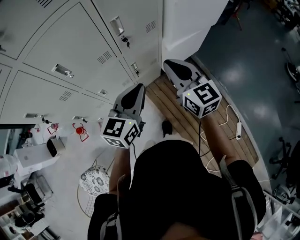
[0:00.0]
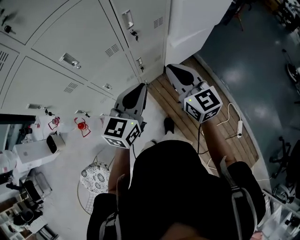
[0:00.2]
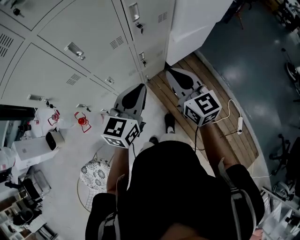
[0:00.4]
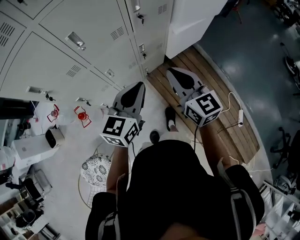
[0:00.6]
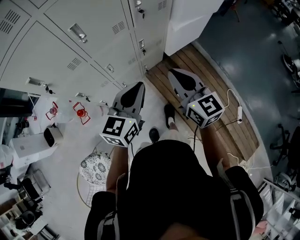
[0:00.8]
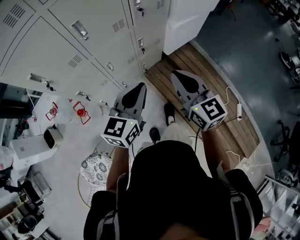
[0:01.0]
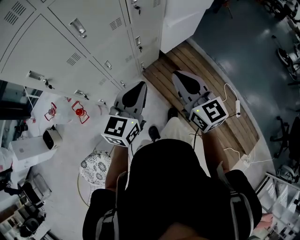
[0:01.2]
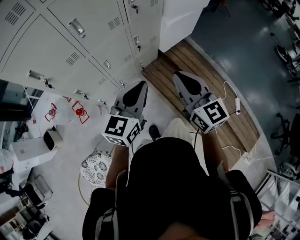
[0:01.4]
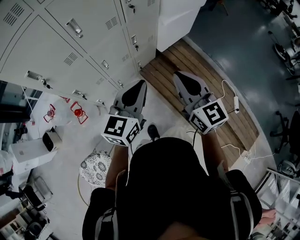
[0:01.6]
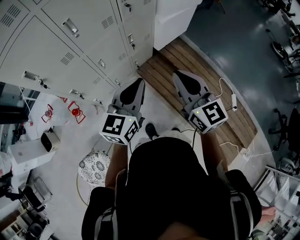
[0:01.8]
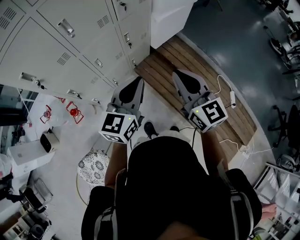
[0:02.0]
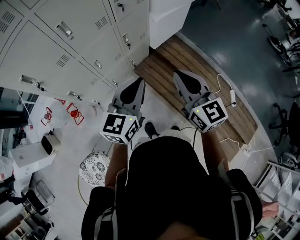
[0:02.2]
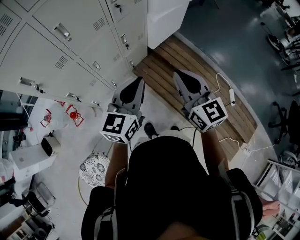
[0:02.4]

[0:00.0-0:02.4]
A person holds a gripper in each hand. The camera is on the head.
0:00.0 to 0:01.2: The left gripper heads backward and to the left, covering approximately 20 cm; the right gripper heads backward, covering some 25 cm.
0:01.2 to 0:02.4: Both grippers travel together to the right, some 5 cm.

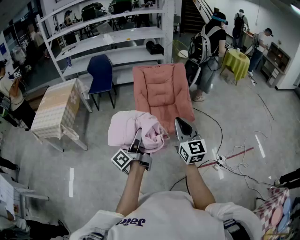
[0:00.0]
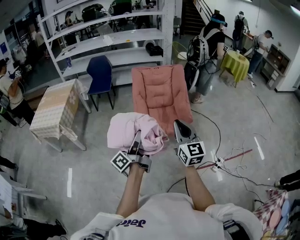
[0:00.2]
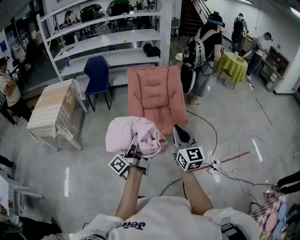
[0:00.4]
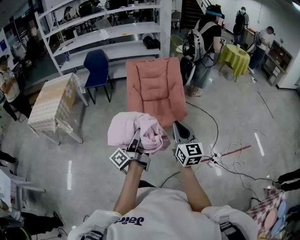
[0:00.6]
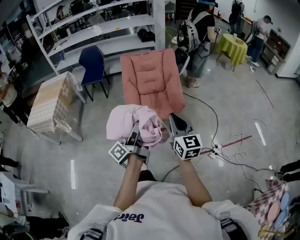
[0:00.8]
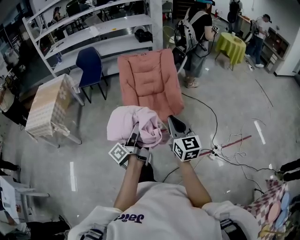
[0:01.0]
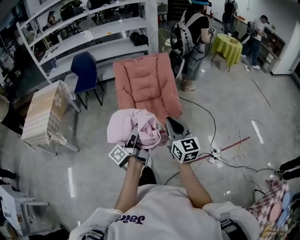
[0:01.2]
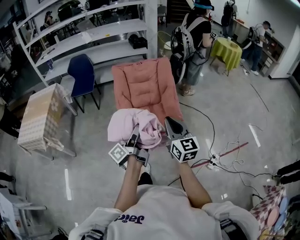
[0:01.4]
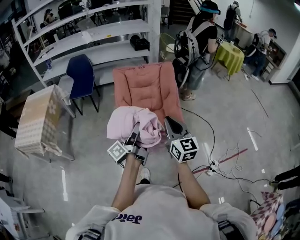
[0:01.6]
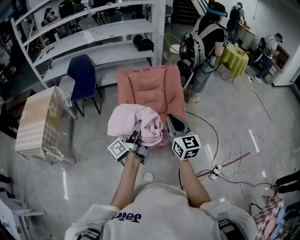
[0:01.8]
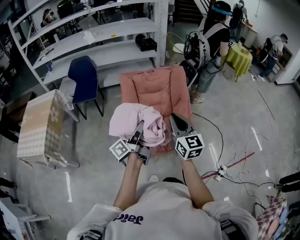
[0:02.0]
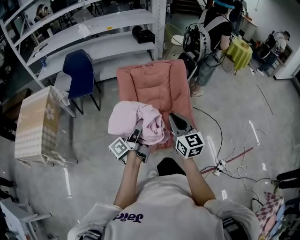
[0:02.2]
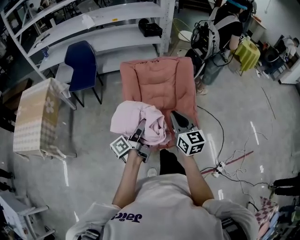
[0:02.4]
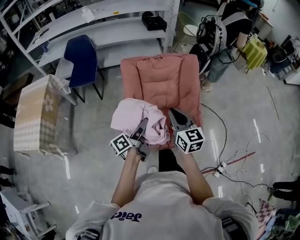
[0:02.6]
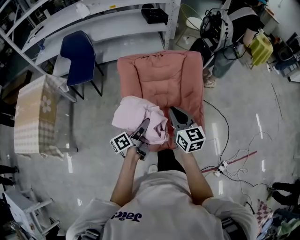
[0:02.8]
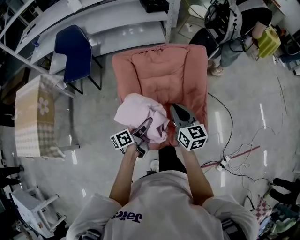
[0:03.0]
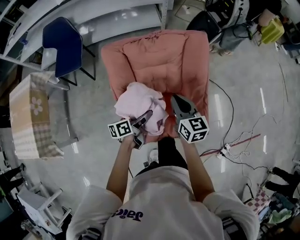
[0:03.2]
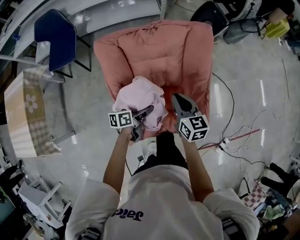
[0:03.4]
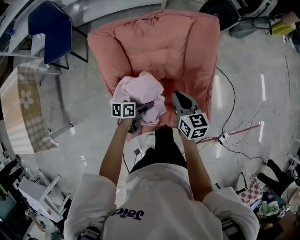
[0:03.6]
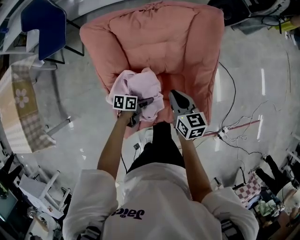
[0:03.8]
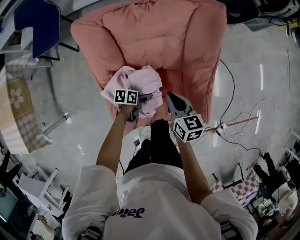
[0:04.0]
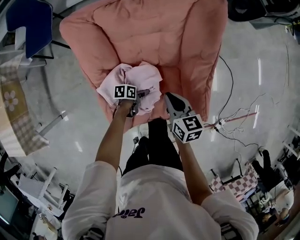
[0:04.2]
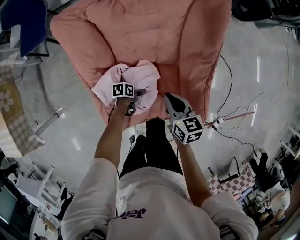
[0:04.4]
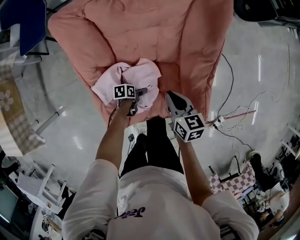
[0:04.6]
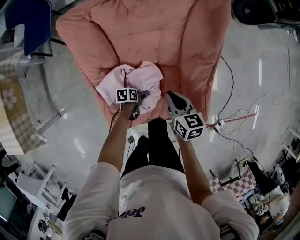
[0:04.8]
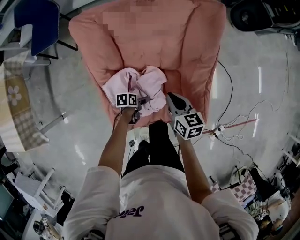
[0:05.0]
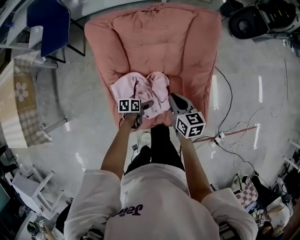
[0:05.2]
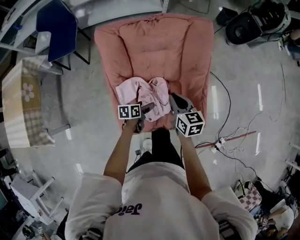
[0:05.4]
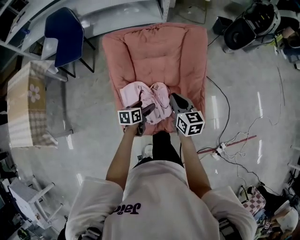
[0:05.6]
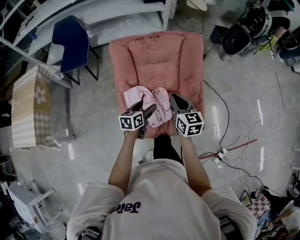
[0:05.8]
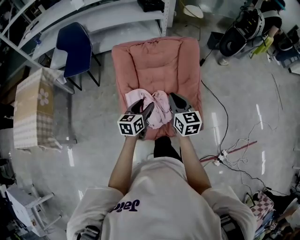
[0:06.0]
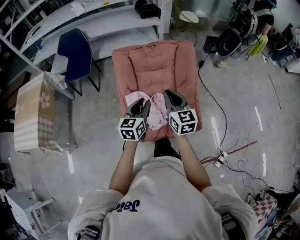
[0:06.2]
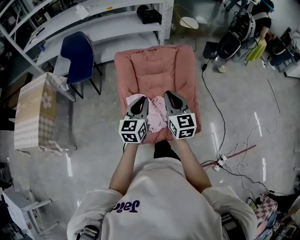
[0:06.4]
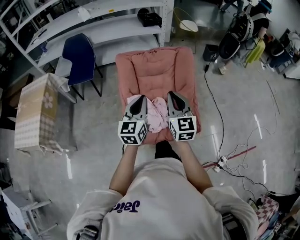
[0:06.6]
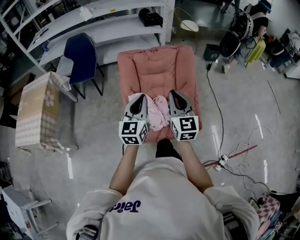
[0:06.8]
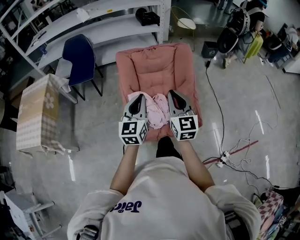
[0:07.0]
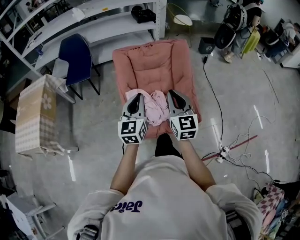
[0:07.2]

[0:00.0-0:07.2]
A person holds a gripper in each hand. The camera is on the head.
0:00.0 to 0:01.4: The left gripper moves forward and to the right, approximately 20 cm. Meanwhile the right gripper goes roughly 15 cm forward, to the right and downward.
0:01.4 to 0:02.8: The two grippers go about 40 cm forward. The left gripper swivels some 20 degrees.
0:02.8 to 0:04.4: The right gripper is displaced downward and forward by some 30 cm, and changes its angle by roughly 30 degrees, while the left gripper goes about 50 cm downward, and tilts its fingers roughly 50 degrees downward.
0:04.4 to 0:05.8: The left gripper goes some 35 cm upward, and turns by approximately 50 degrees. The right gripper heads upward, covering some 20 cm, and rotates about 20 degrees.
0:05.8 to 0:07.2: The right gripper shifts approximately 20 cm backward and upward, and swivels some 30 degrees. Meanwhile the left gripper travels upward and backward by roughly 25 cm, rotates about 40 degrees, and closes up.

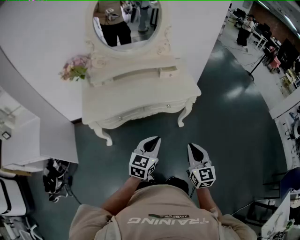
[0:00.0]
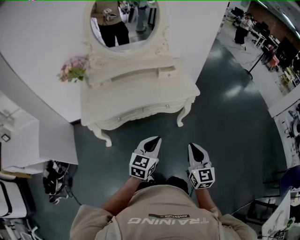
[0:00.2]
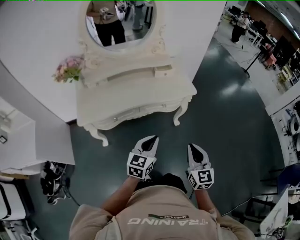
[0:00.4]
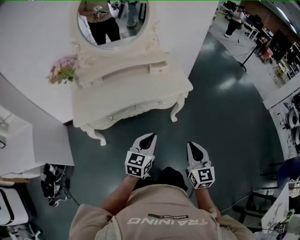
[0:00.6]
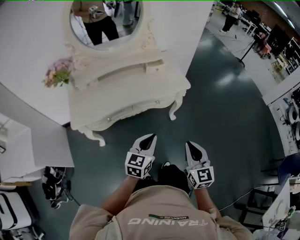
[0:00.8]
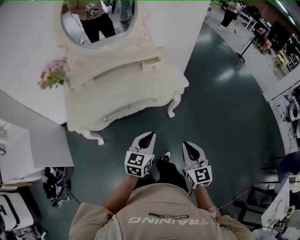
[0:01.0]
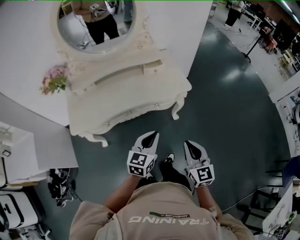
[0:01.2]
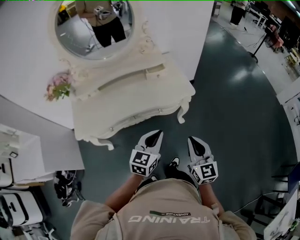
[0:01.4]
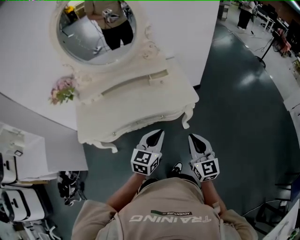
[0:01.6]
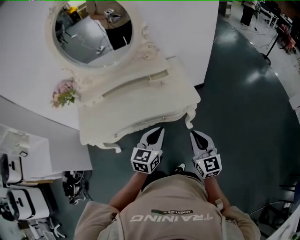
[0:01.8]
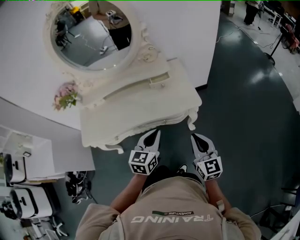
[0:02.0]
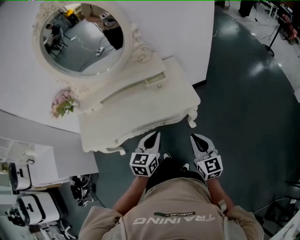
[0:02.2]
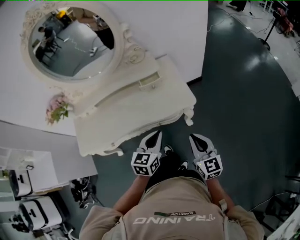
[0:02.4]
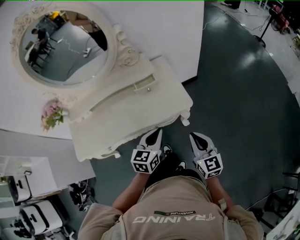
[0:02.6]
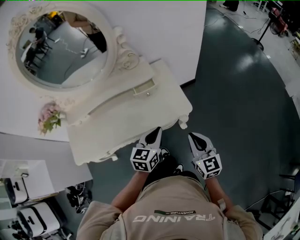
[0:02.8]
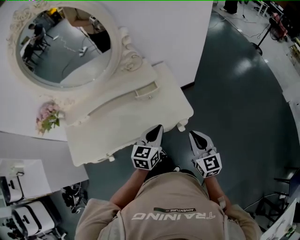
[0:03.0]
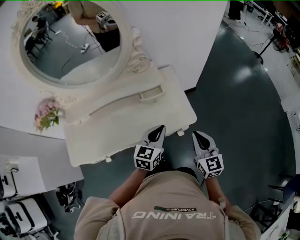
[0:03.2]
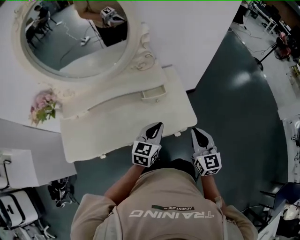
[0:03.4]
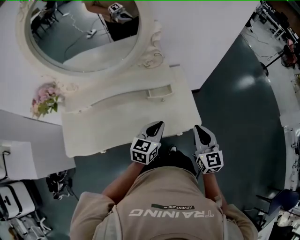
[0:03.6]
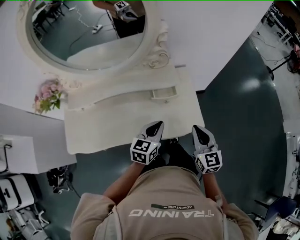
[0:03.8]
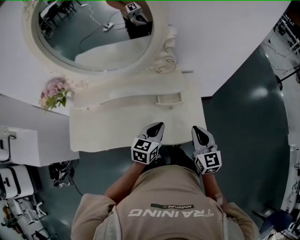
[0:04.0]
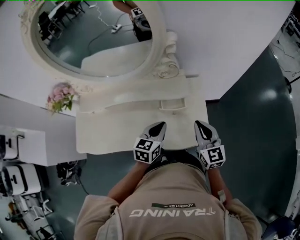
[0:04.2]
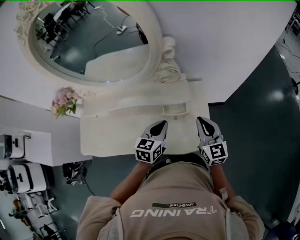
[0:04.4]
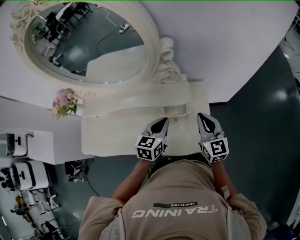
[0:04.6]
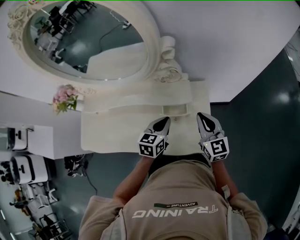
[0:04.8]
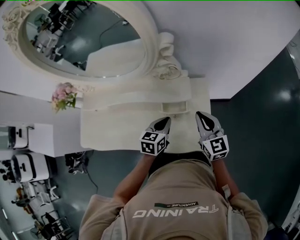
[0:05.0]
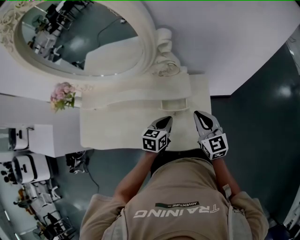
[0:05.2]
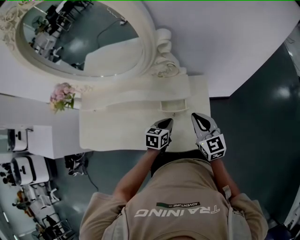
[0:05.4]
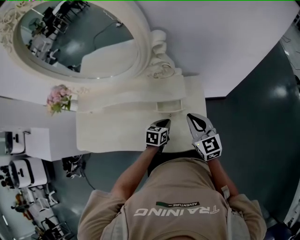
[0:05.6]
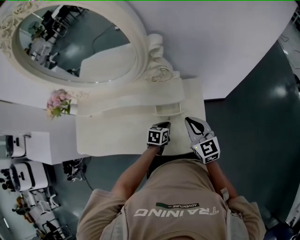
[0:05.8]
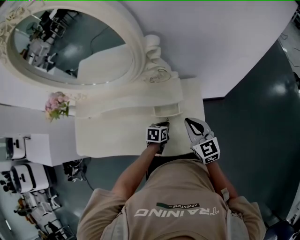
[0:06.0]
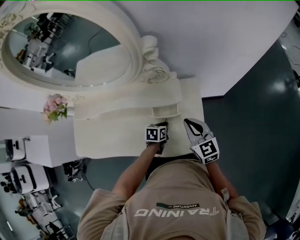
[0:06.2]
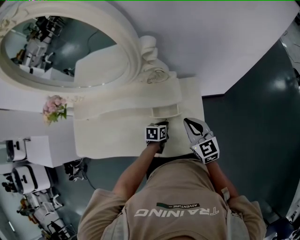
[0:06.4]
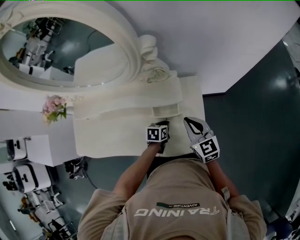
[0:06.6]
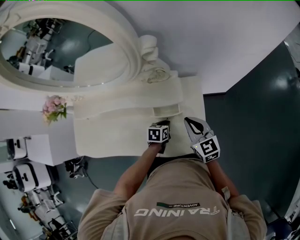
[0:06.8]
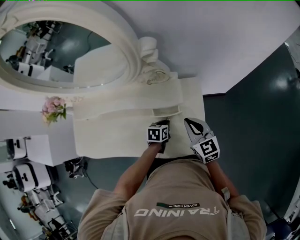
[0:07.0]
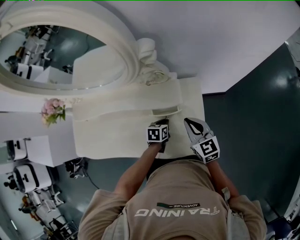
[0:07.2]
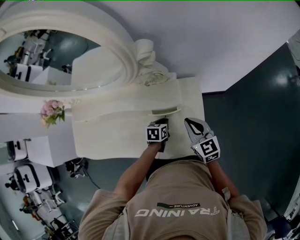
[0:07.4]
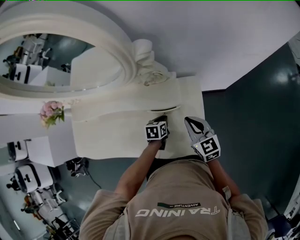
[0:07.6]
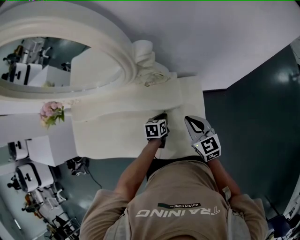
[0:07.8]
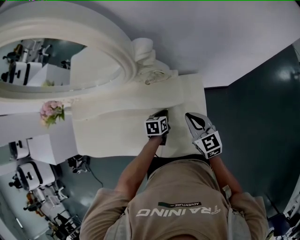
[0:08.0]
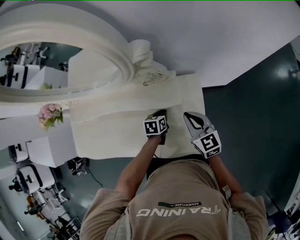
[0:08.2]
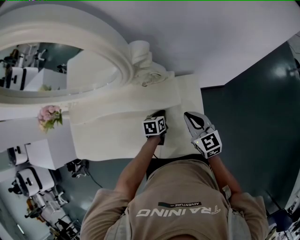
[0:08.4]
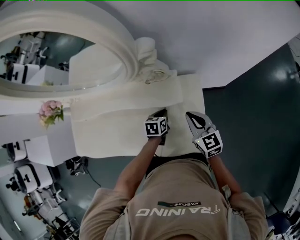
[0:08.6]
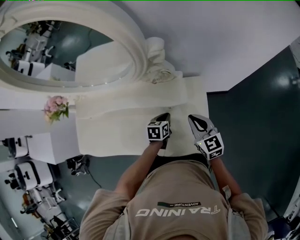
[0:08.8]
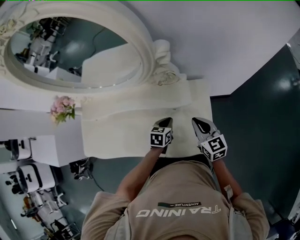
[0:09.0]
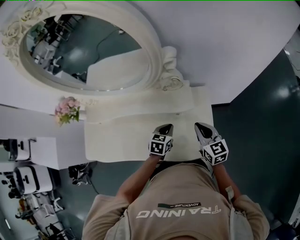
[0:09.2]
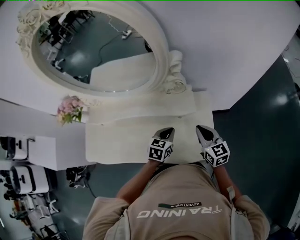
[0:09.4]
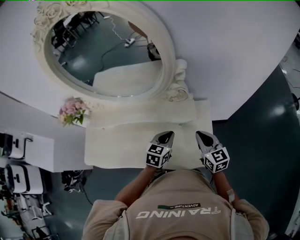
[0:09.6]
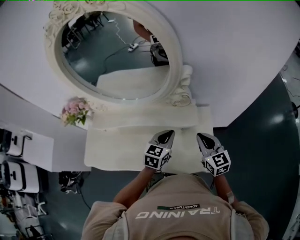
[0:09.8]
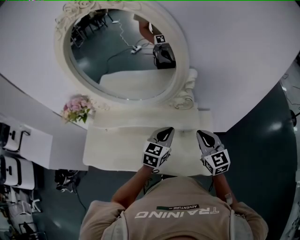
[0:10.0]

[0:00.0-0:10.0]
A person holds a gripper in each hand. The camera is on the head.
0:00.0 to 0:01.4: Both grippers move forward and to the right, about 15 cm.
0:01.4 to 0:02.8: Both grippers move forward, about 20 cm.
0:02.8 to 0:04.2: The right gripper goes some 20 cm forward. The left gripper shifts approximately 20 cm forward and to the left.
0:04.2 to 0:05.8: The right gripper shifts about 5 cm forward, while the left gripper is displaced downward by roughly 20 cm, and changes its angle by some 30 degrees.
0:05.8 to 0:07.2: The grippers stay close to where they were, moving slightly.
0:07.2 to 0:08.6: There are only small adjustments of the grippers.
0:08.6 to 0:10.0: The left gripper heads upward, covering roughly 25 cm, and swivels roughly 40 degrees; the right gripper moves upward and to the left, approximately 15 cm.

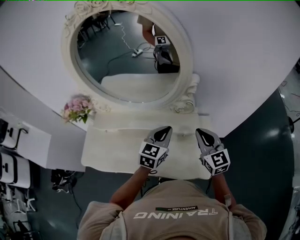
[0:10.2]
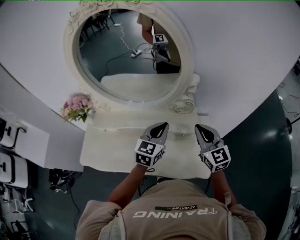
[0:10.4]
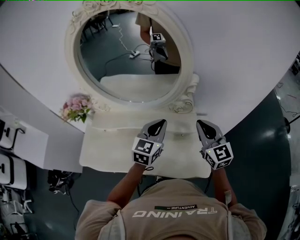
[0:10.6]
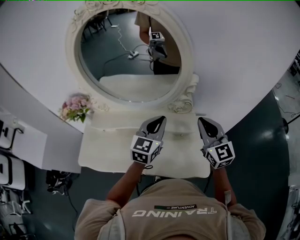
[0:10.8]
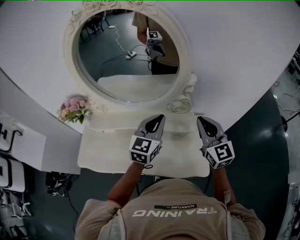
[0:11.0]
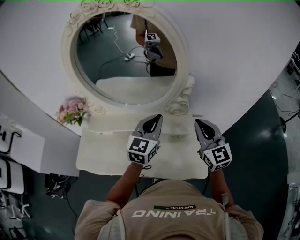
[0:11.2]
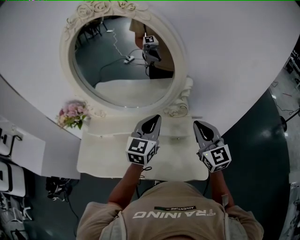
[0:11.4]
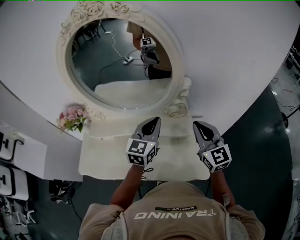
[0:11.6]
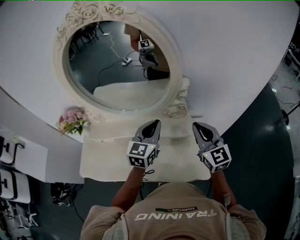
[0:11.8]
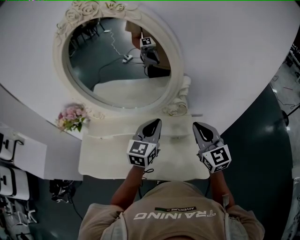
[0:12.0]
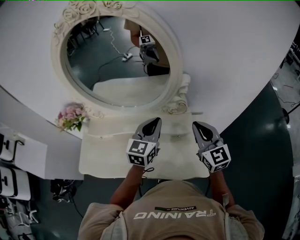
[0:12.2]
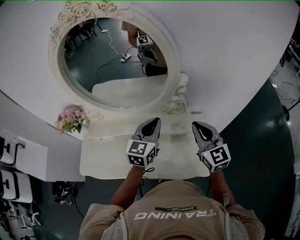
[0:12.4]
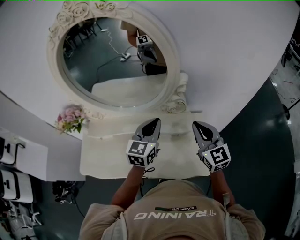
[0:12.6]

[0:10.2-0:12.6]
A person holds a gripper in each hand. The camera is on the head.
0:10.2 to 0:11.4: The grippers both shift upward by about 10 cm.
0:11.4 to 0:12.6: The grippers make only small movements.

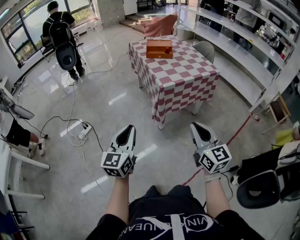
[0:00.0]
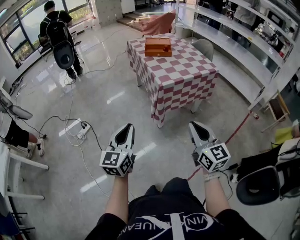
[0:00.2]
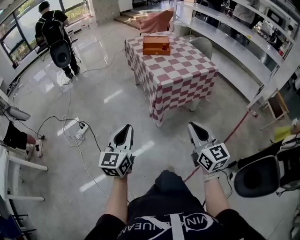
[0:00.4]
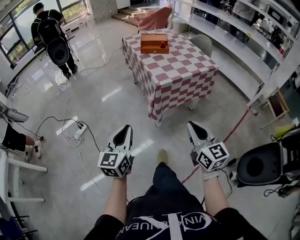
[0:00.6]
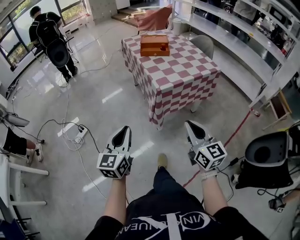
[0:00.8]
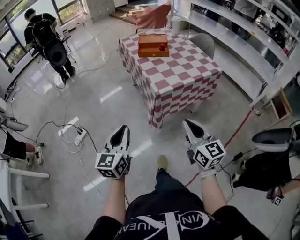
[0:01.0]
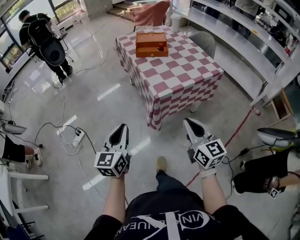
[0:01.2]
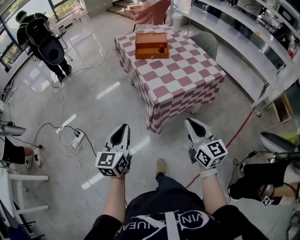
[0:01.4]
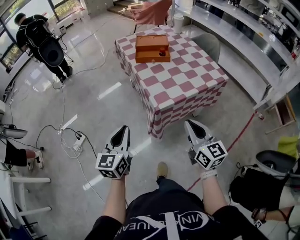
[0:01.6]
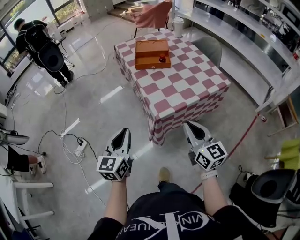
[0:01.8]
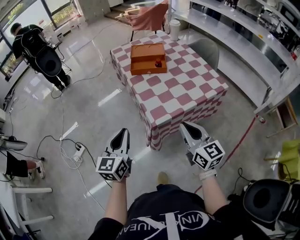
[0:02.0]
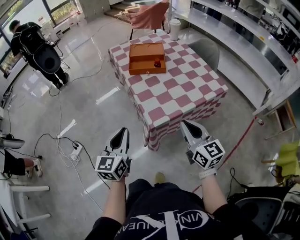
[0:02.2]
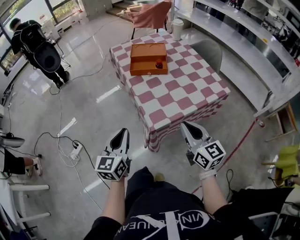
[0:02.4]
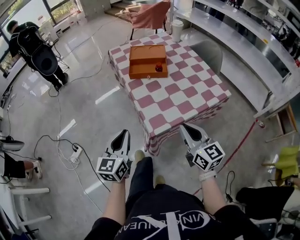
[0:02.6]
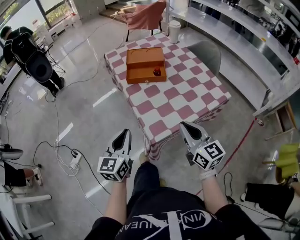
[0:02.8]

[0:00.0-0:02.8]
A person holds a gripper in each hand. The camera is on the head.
0:00.0 to 0:01.4: Both grippers travel together forward, some 25 cm.
0:01.4 to 0:02.8: The grippers both shift forward by some 20 cm.
